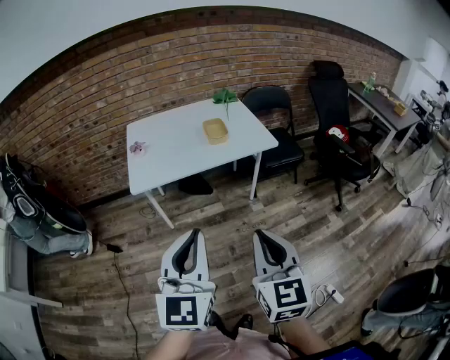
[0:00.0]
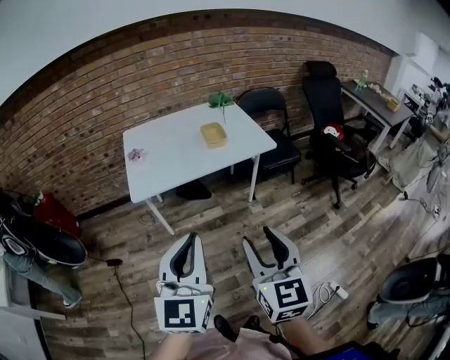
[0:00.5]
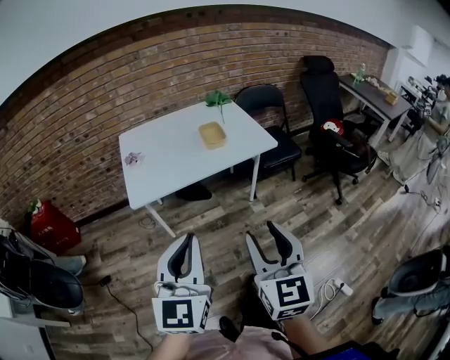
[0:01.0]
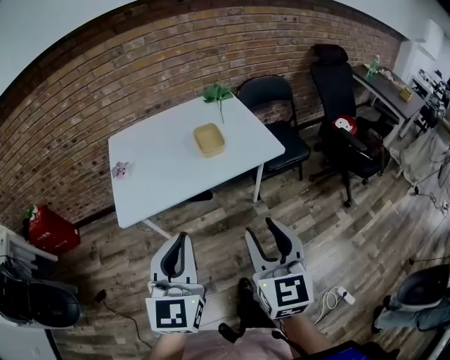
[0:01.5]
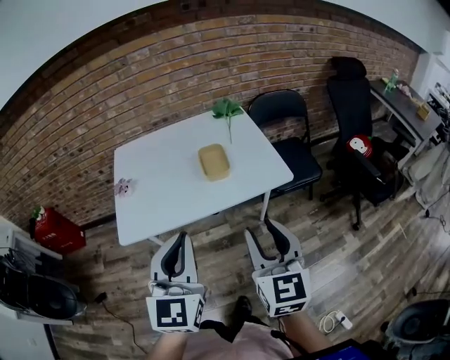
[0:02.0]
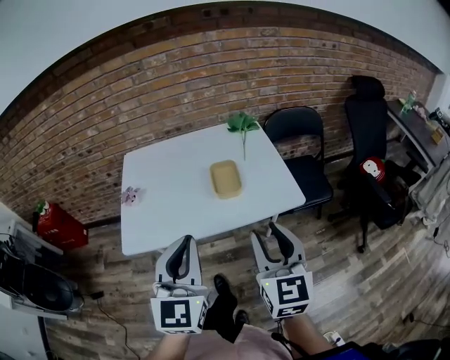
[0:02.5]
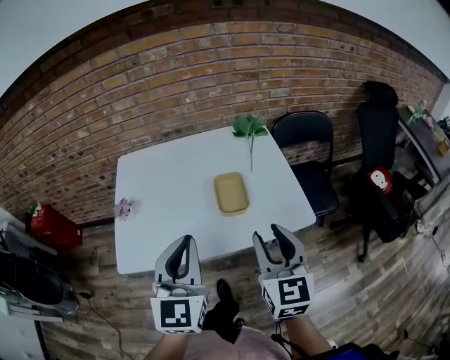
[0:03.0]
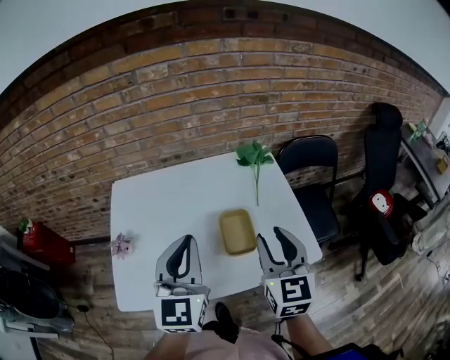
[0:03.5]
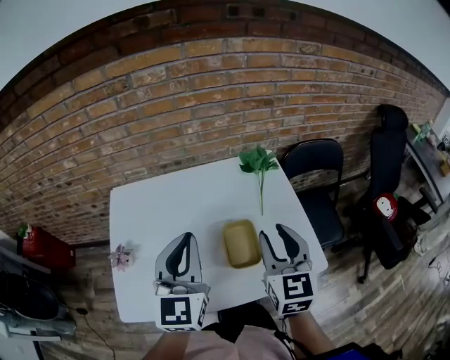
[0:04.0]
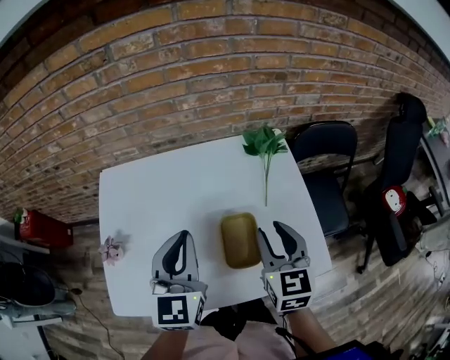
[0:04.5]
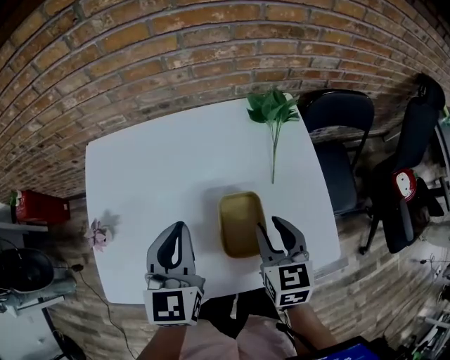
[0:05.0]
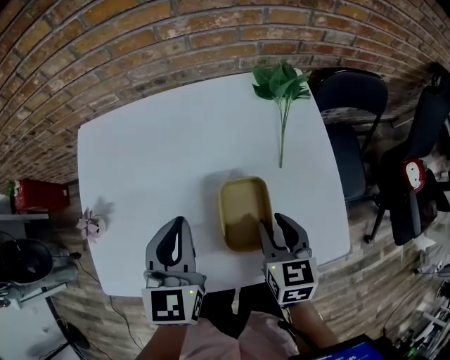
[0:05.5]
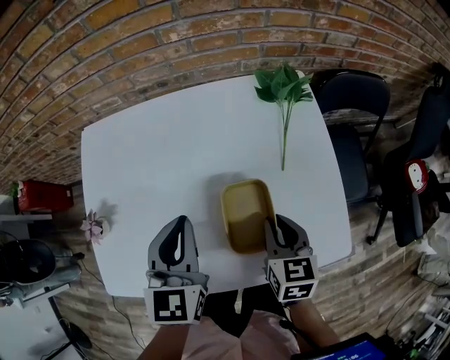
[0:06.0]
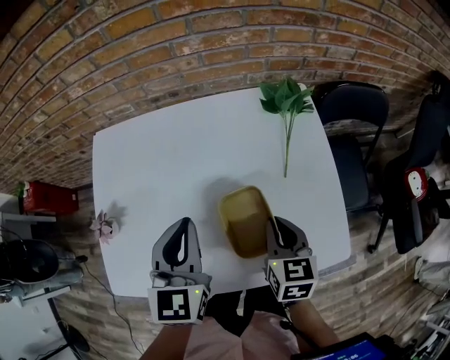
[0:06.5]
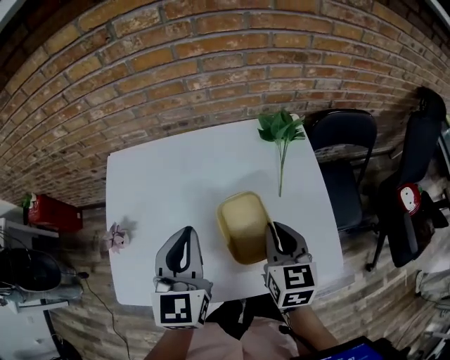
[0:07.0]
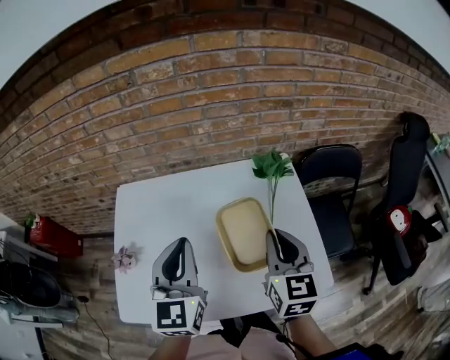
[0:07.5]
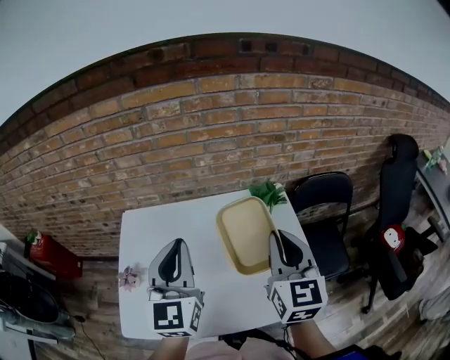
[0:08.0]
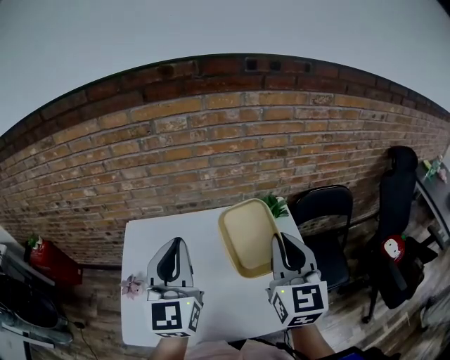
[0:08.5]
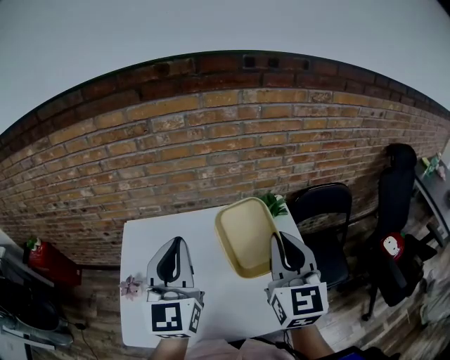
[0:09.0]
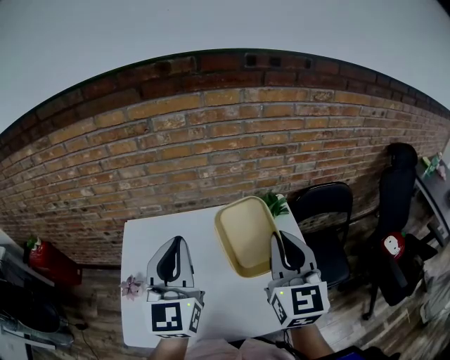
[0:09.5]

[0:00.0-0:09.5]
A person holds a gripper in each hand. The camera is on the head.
0:00.0 to 0:02.0: Both grippers move forward, roughly 25 cm. The right gripper opens.
0:02.0 to 0:04.0: Both grippers travel together forward, roughly 35 cm.
0:04.0 to 0:05.5: The grippers both shift downward by approximately 20 cm. The right gripper rotates some 30 degrees. The left gripper rotates about 20 degrees.
0:05.5 to 0:07.5: The two grippers go approximately 15 cm upward. The right gripper turns by some 20 degrees, and closes its fingers.
0:07.5 to 0:09.5: The two grippers go about 10 cm upward.

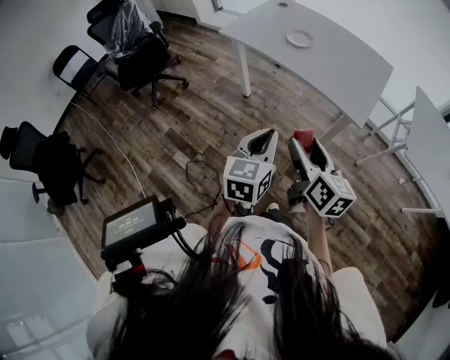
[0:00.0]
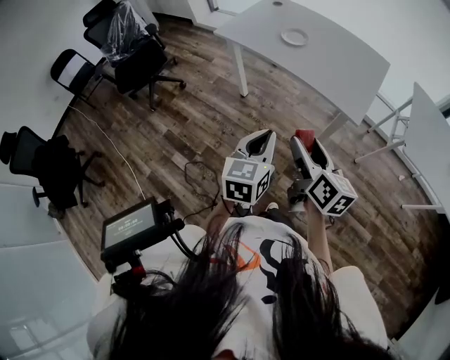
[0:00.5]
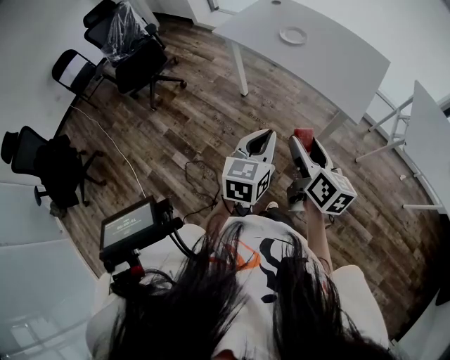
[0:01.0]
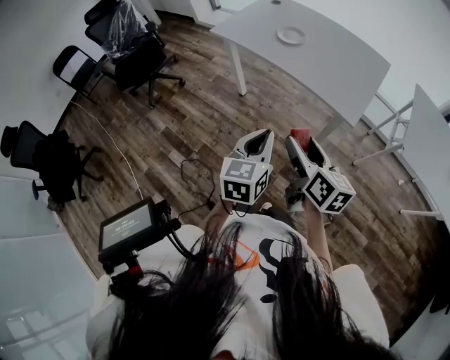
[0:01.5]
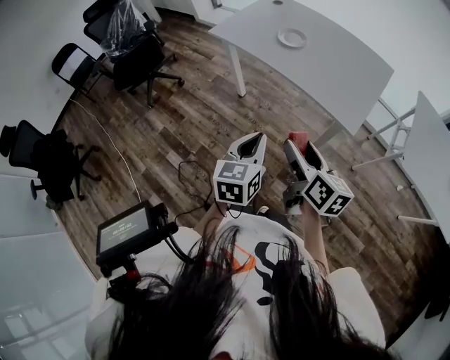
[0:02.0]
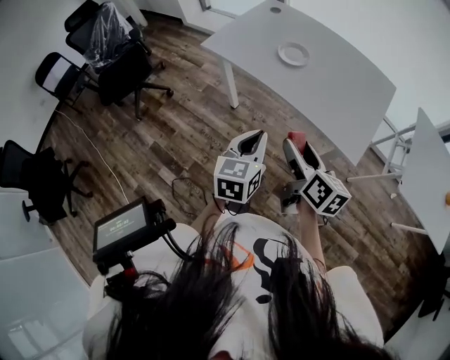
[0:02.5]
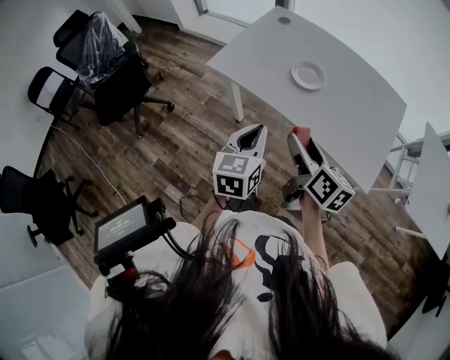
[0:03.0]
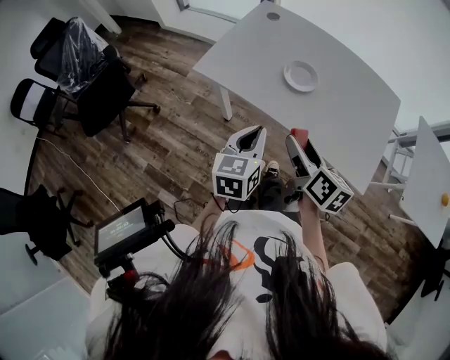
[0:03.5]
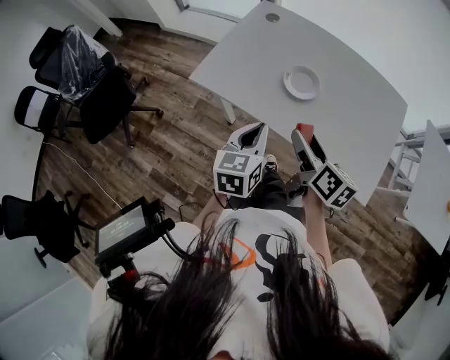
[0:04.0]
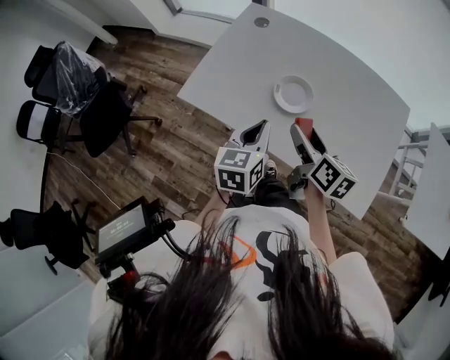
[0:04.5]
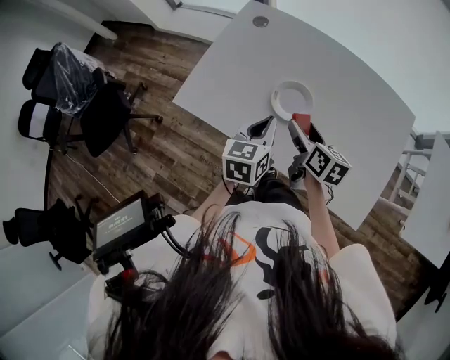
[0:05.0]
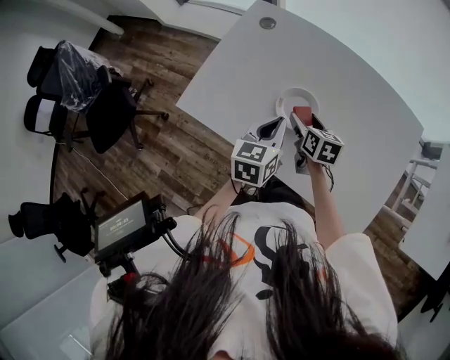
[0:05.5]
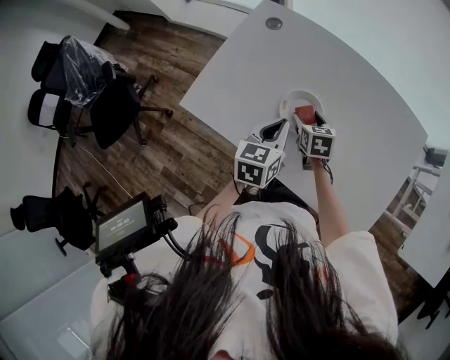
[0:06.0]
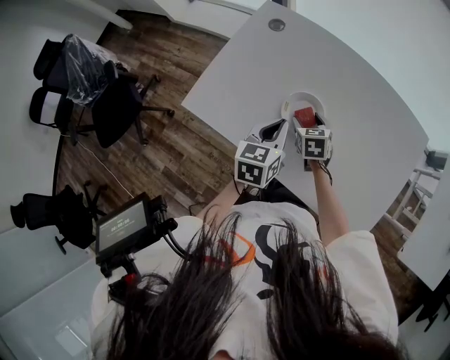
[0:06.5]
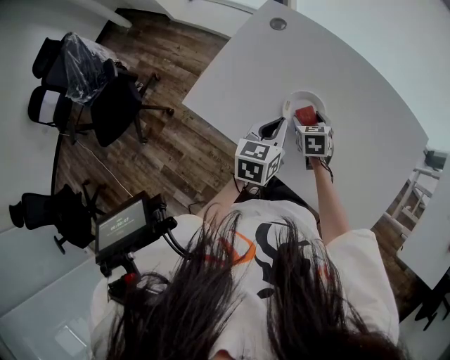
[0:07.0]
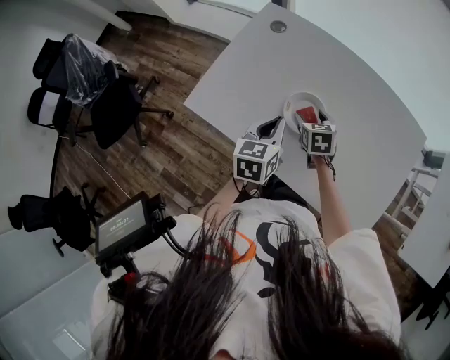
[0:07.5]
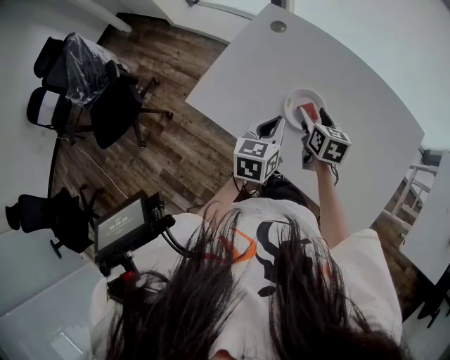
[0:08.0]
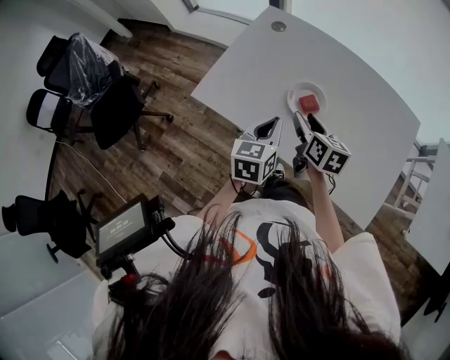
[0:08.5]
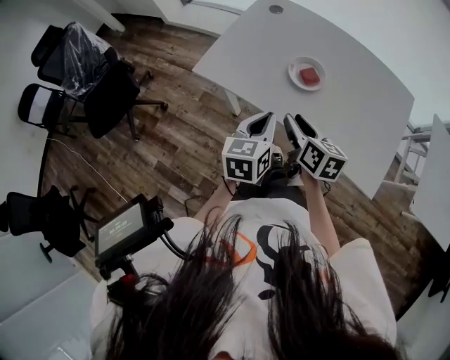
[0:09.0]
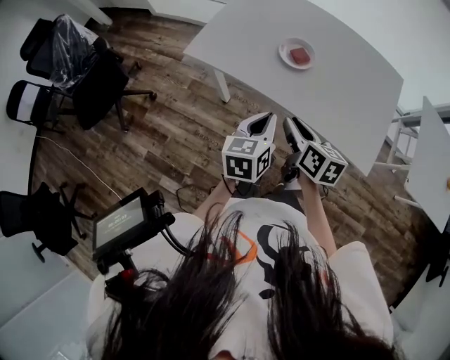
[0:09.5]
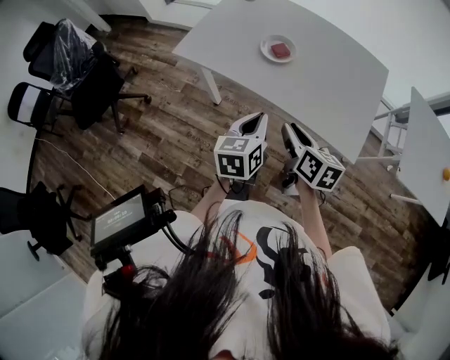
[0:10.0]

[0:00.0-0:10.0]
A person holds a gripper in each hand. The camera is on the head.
0:00.0 to 0:02.0: The right gripper travels to the right by about 5 cm. The left gripper ends up about 5 cm from where it was.
0:02.0 to 0:04.0: The two grippers go roughly 40 cm forward.
0:04.0 to 0:06.0: The right gripper heads forward and downward, covering roughly 30 cm, and turns by roughly 40 degrees. The left gripper moves forward and to the right, roughly 20 cm.
0:06.0 to 0:08.0: The right gripper shifts some 5 cm upward.
0:08.0 to 0:10.0: The grippers both shift backward by about 35 cm. The right gripper closes its fingers.

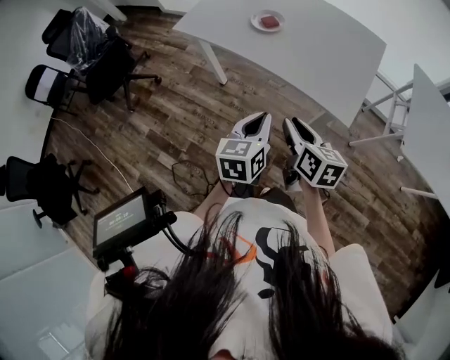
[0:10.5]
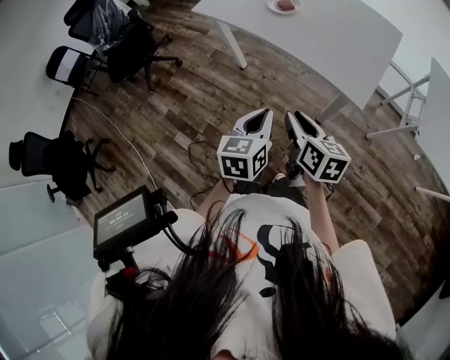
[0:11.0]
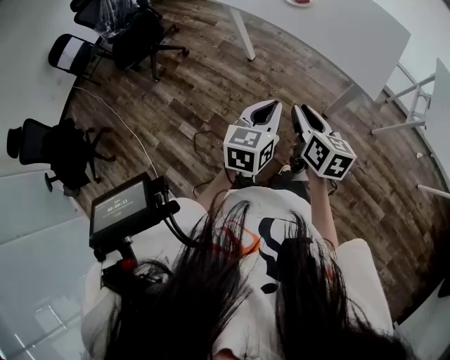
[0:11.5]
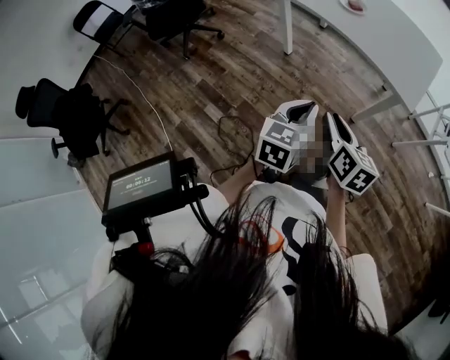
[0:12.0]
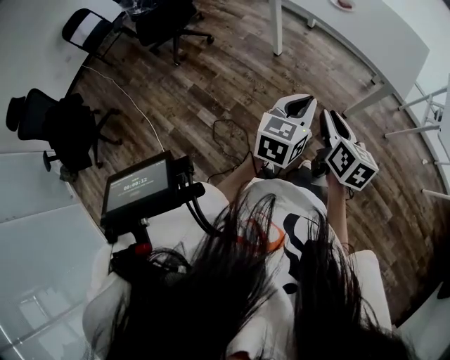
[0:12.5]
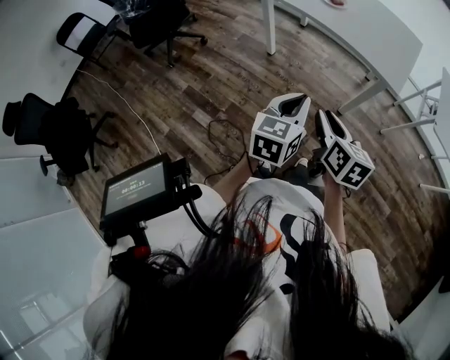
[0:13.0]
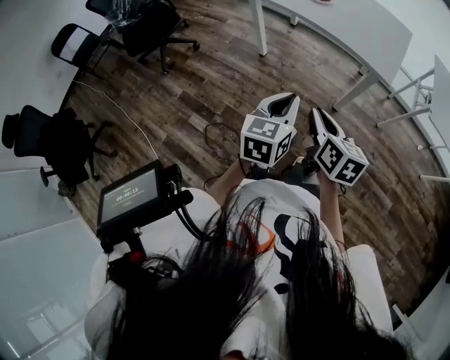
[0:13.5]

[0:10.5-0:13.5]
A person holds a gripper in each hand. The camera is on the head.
0:10.5 to 0:12.0: Both grippers travel together backward and to the left, roughly 20 cm.
0:12.0 to 0:13.5: There are only small adjustments of the grippers.

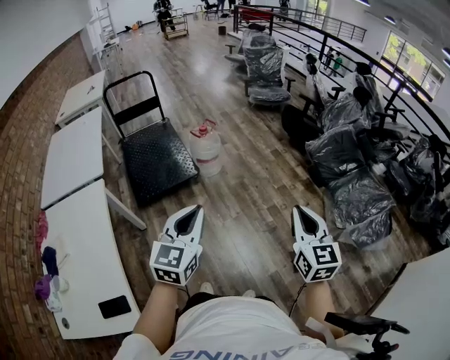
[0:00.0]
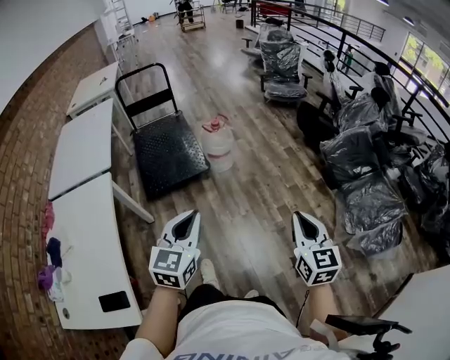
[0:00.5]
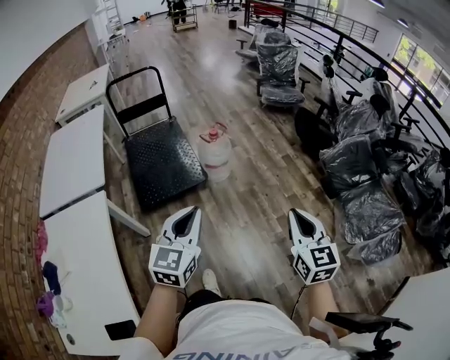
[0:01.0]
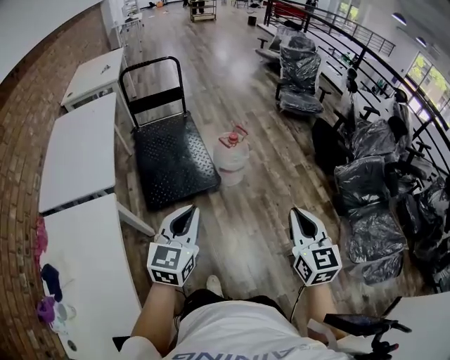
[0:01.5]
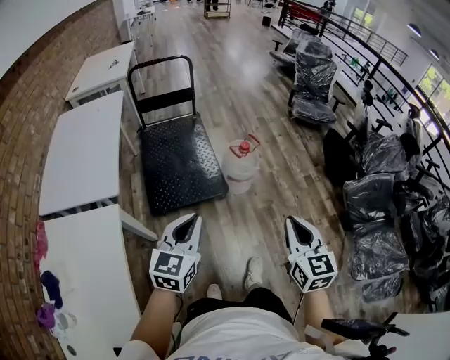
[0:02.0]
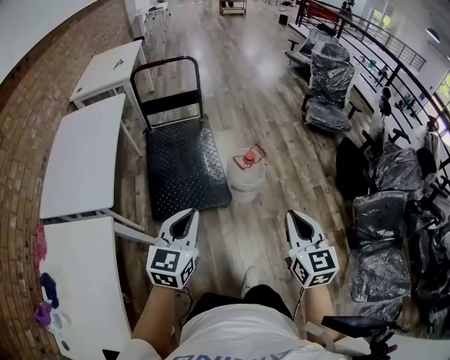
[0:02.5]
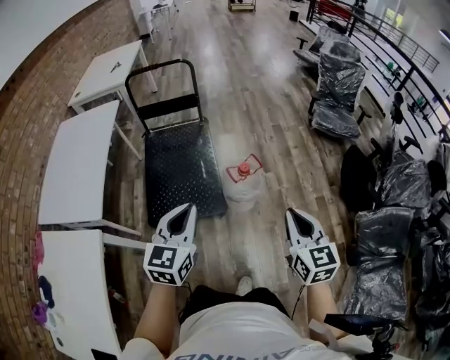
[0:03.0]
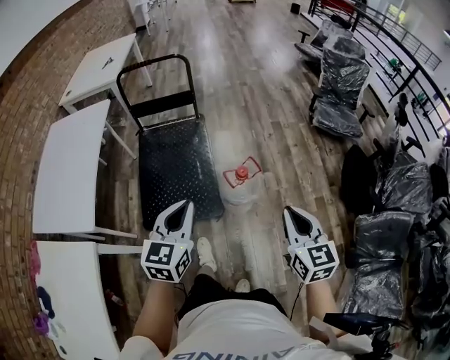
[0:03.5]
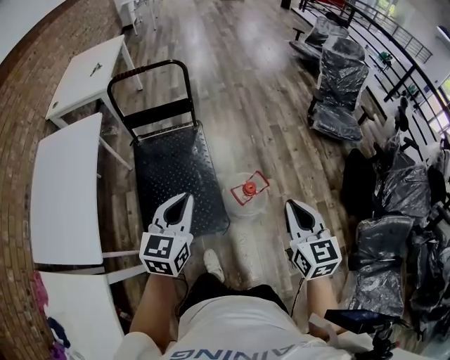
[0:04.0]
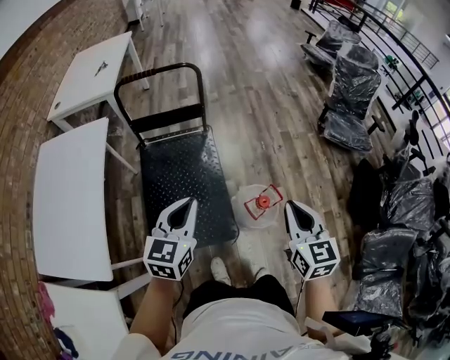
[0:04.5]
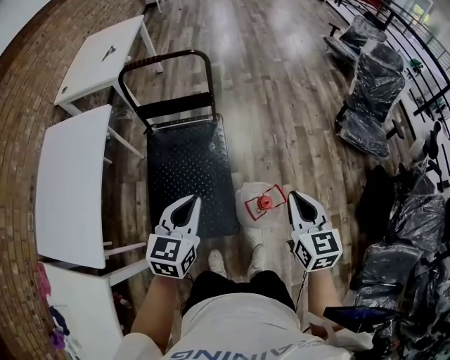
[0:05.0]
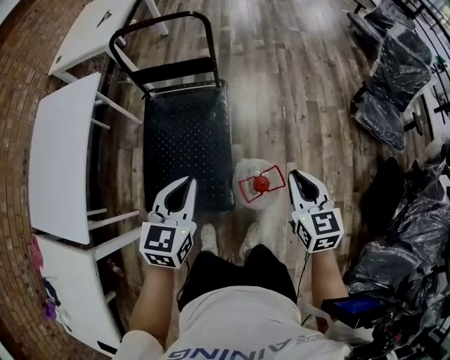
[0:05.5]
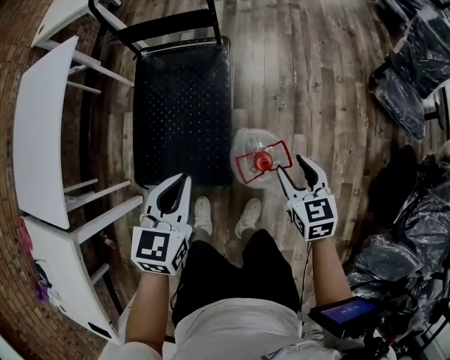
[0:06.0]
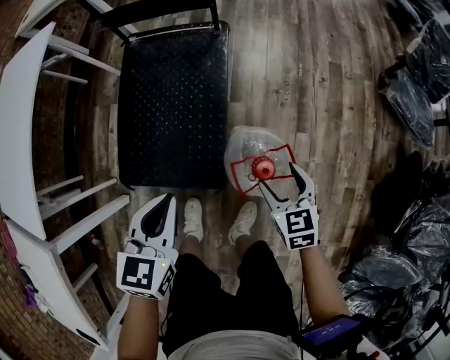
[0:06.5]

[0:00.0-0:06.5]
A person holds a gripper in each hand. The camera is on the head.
0:00.0 to 0:02.0: The grippers both shift forward and to the left by some 35 cm.
0:02.0 to 0:04.5: Both grippers are carried forward, some 50 cm.
0:04.5 to 0:06.5: The right gripper heads downward, covering approximately 40 cm, rotates roughly 30 degrees, and opens up. The left gripper travels downward by roughly 25 cm, and changes its angle by some 30 degrees.
